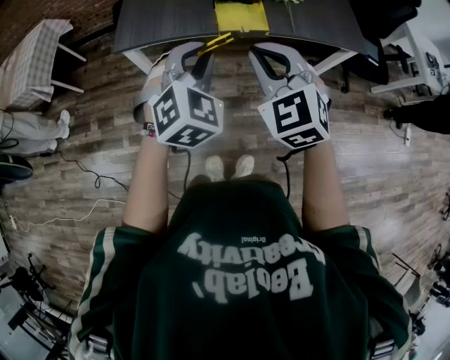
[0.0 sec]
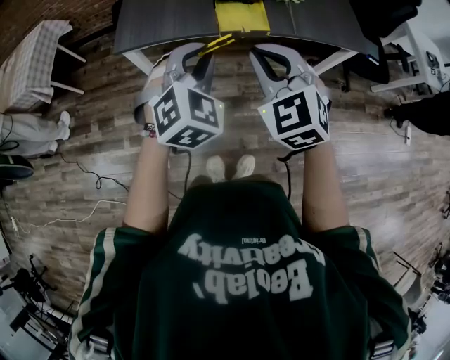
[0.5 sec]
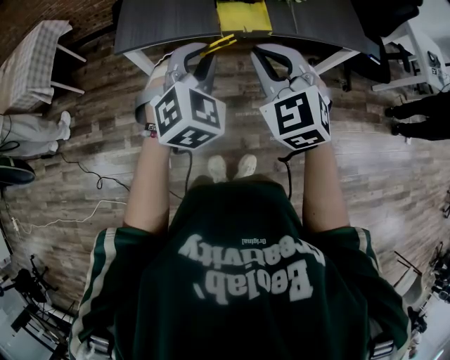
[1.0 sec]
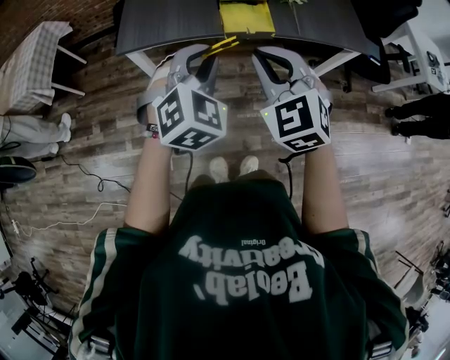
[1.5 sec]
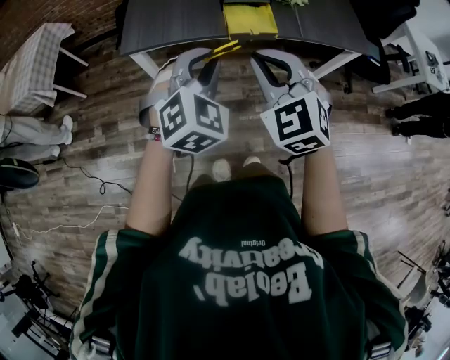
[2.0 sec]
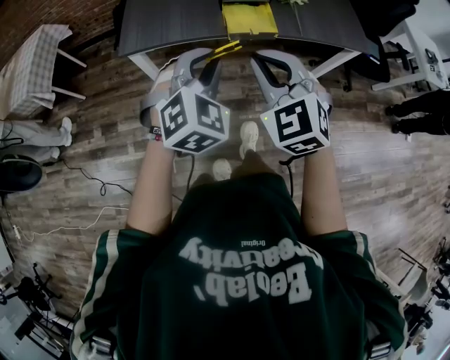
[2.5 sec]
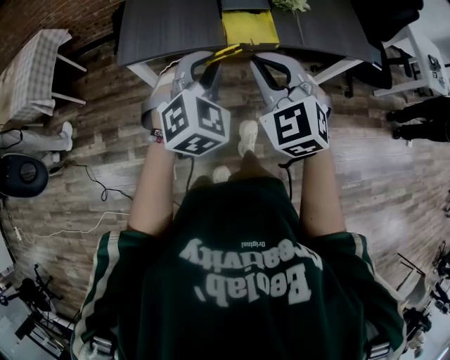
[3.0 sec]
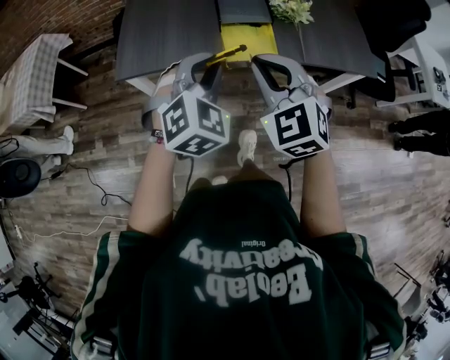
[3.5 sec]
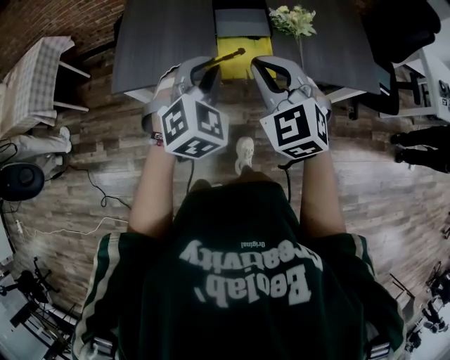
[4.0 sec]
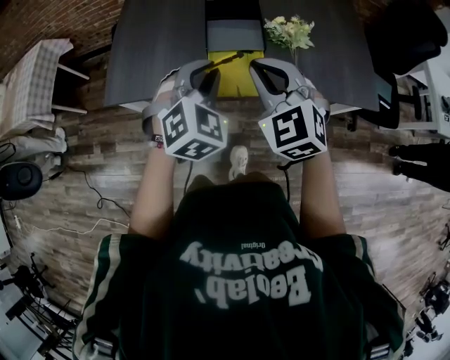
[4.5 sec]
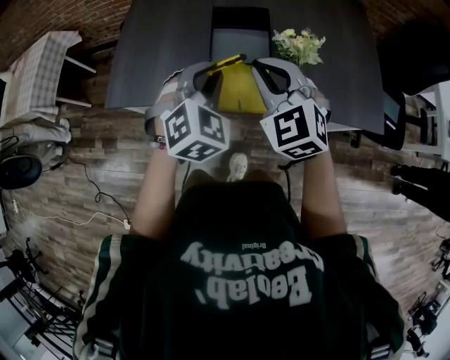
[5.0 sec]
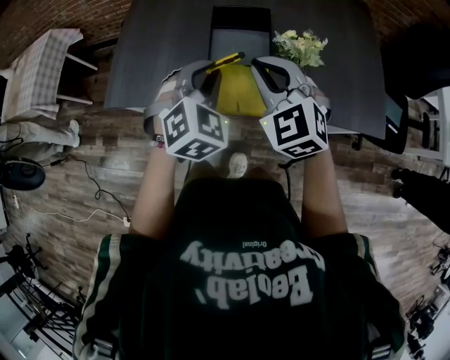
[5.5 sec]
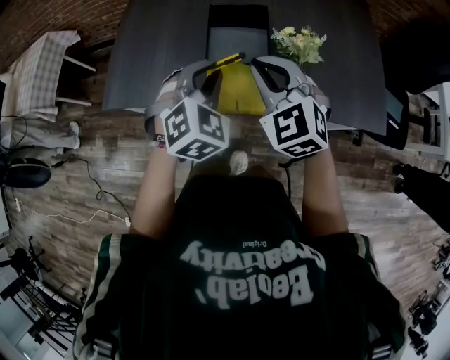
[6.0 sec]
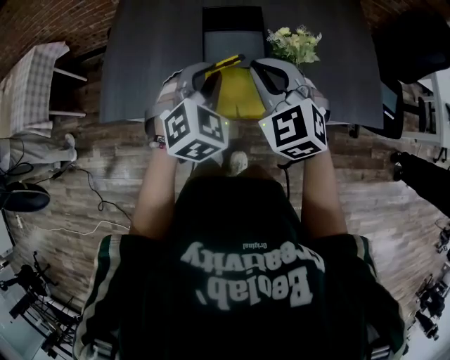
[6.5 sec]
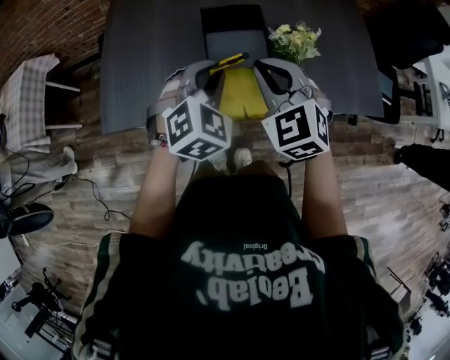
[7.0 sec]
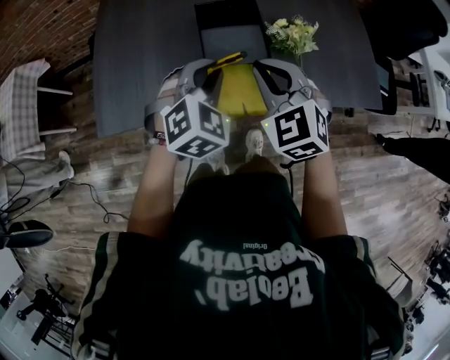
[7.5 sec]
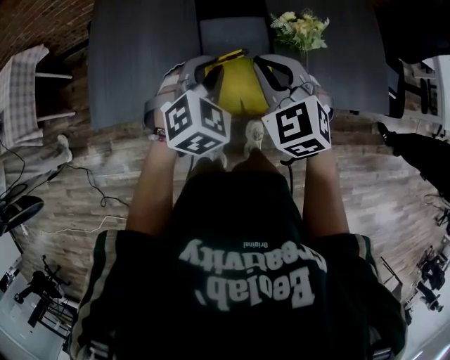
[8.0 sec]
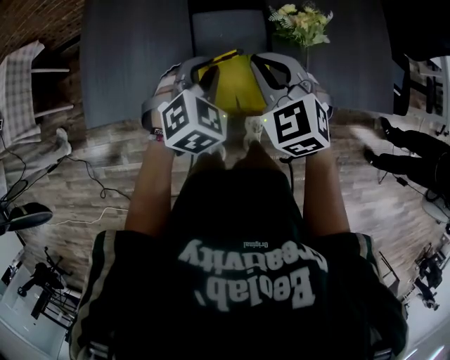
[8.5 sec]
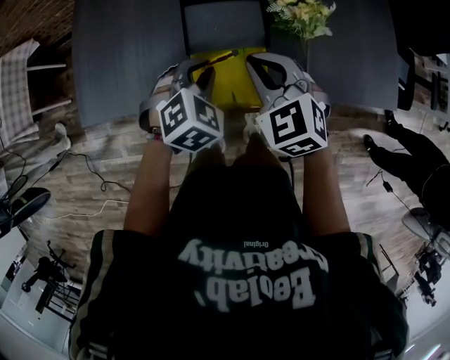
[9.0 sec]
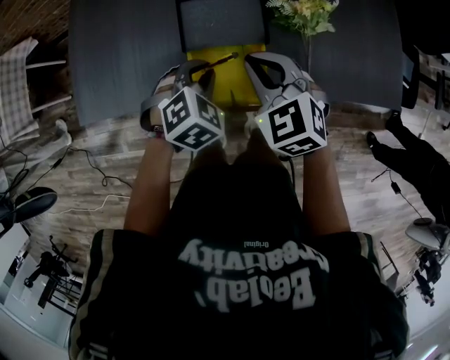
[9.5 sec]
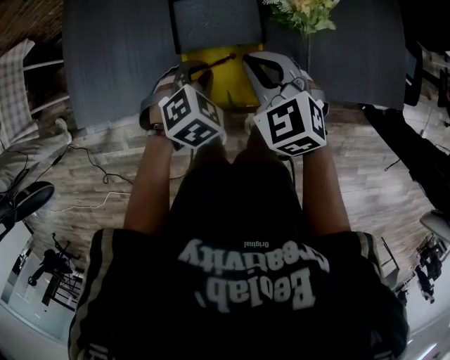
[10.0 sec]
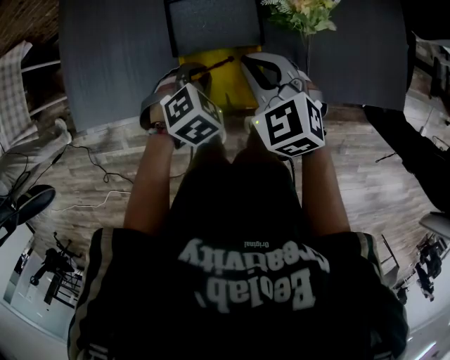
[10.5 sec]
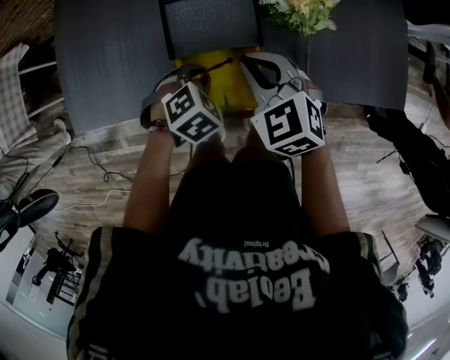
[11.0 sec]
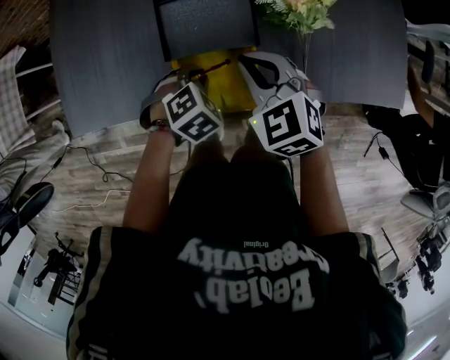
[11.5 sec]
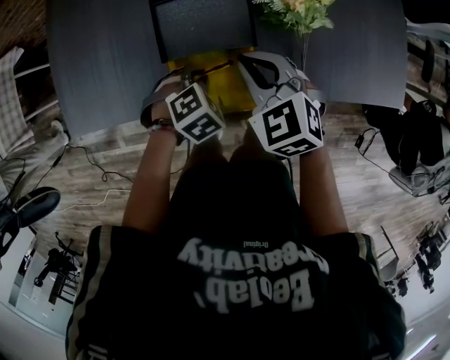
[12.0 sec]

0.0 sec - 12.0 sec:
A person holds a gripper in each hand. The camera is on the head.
0.0 sec - 2.0 sec: The grippers make only small movements.
2.0 sec - 4.0 sec: Both grippers move forward, some 20 cm.
4.0 sec - 6.0 sec: Both grippers travel together forward and to the right, about 15 cm.
6.0 sec - 8.0 sec: Both grippers travel together forward and downward, roughly 10 cm.
8.0 sec - 10.0 sec: Both grippers move downward, approximately 10 cm. The left gripper turns by some 20 degrees.
10.0 sec - 12.0 sec: The left gripper shifts approximately 5 cm downward.

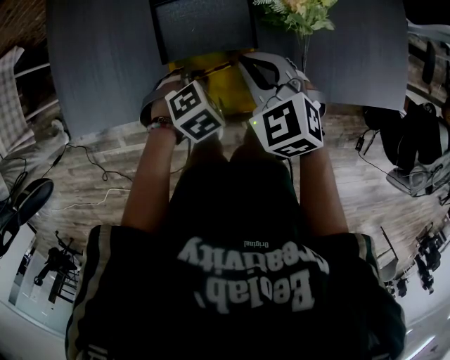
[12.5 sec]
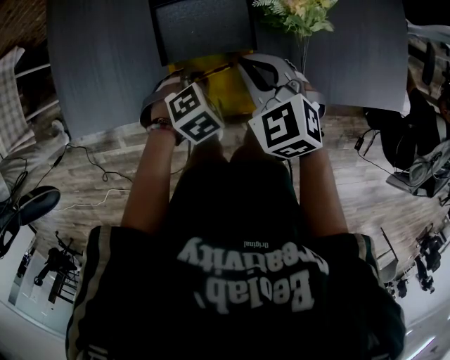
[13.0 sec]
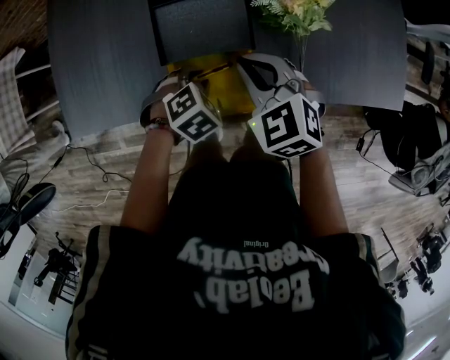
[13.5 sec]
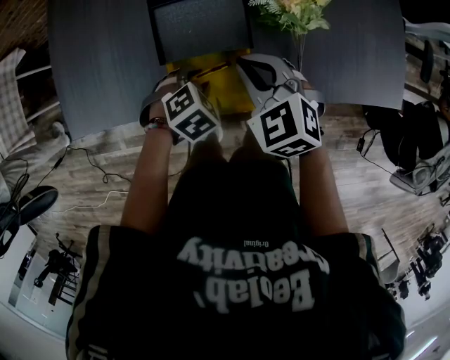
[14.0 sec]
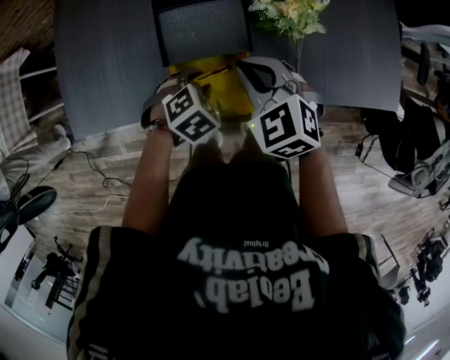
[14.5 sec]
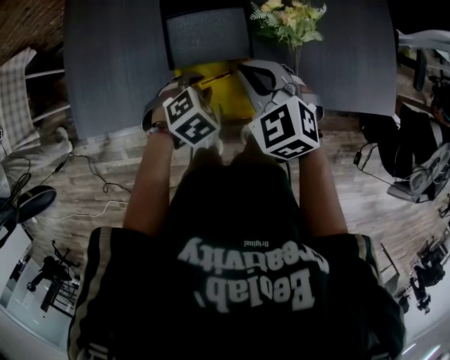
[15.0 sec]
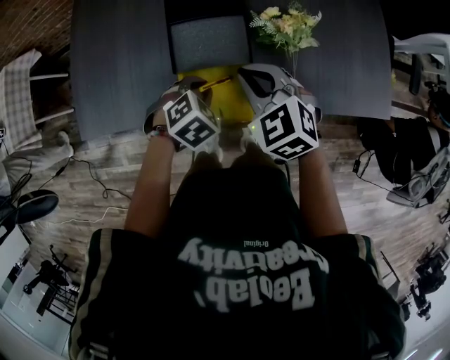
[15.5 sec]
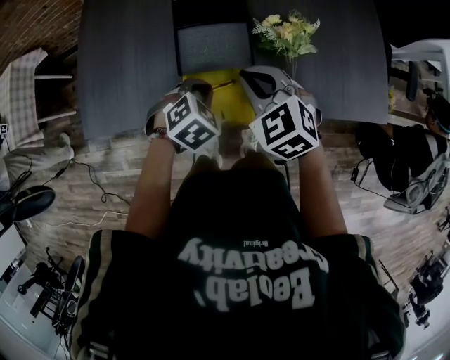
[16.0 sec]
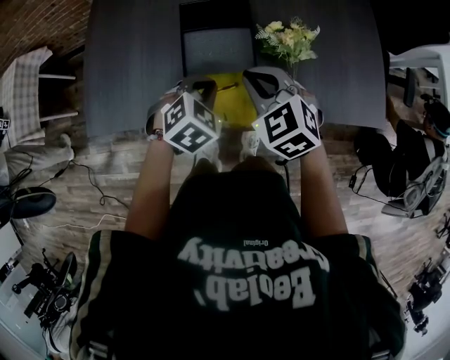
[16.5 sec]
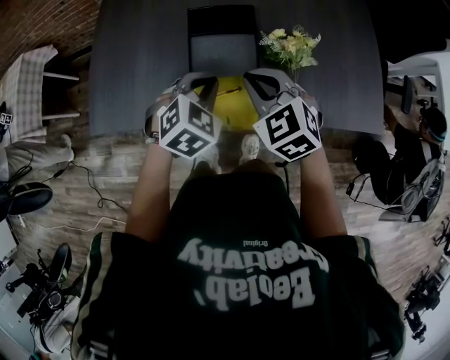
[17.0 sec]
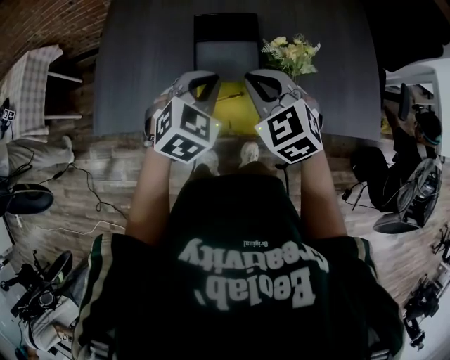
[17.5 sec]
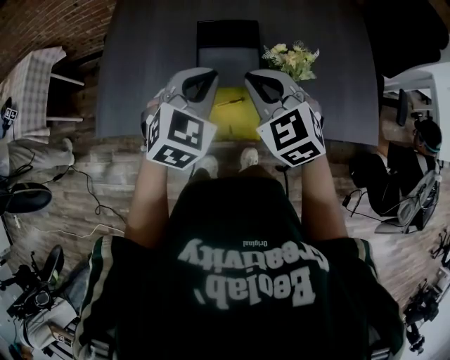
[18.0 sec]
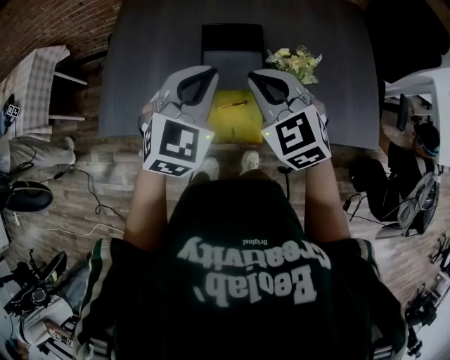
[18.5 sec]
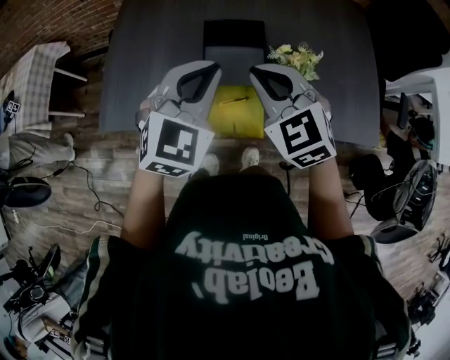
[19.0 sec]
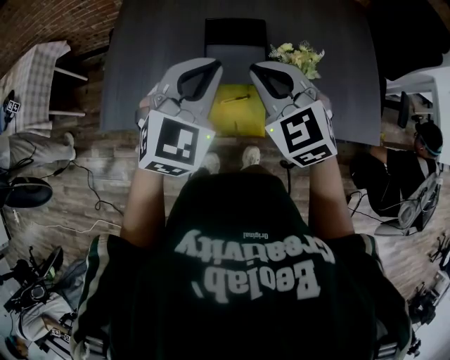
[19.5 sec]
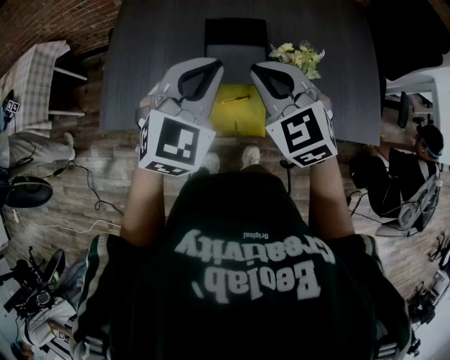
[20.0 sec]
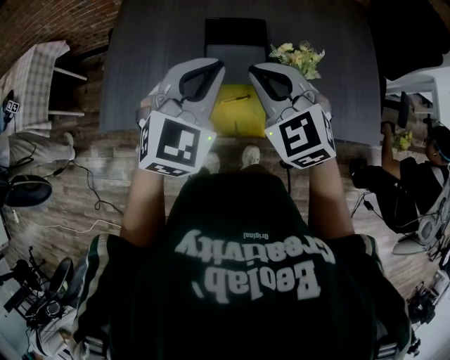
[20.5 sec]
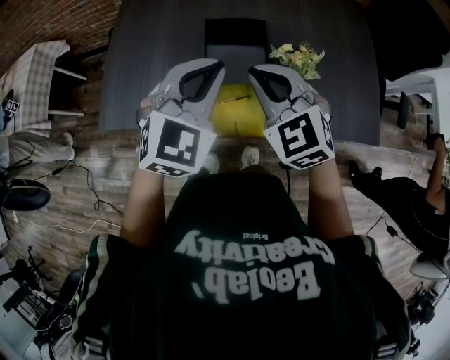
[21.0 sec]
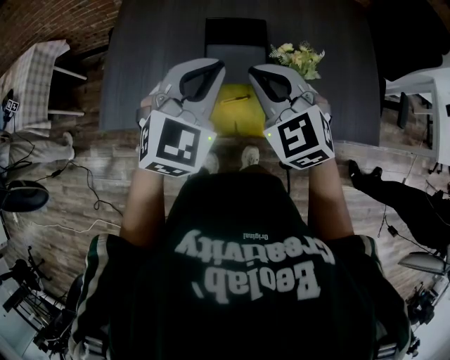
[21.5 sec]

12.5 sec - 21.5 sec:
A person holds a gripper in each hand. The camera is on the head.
12.5 sec - 14.5 sec: The grippers stay close to where they were, moving slightly.
14.5 sec - 17.0 sec: The left gripper shifts roughly 20 cm upward, swivels approximately 30 degrees, and closes its fingers. The right gripper travels upward by some 10 cm.
17.0 sec - 19.5 sec: The left gripper is displaced upward by approximately 15 cm, and changes its angle by about 30 degrees. Meanwhile the right gripper is displaced upward by some 10 cm.
19.5 sec - 21.5 sec: Both grippers stay put.

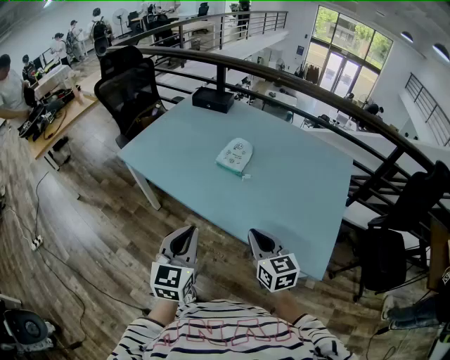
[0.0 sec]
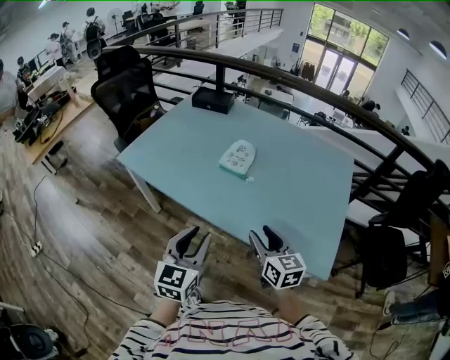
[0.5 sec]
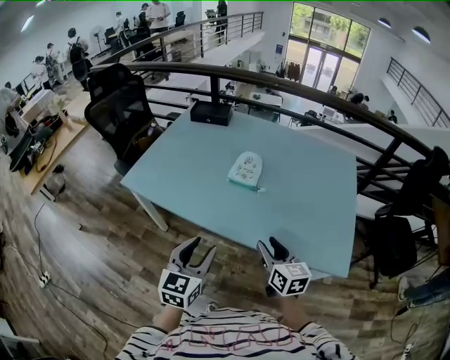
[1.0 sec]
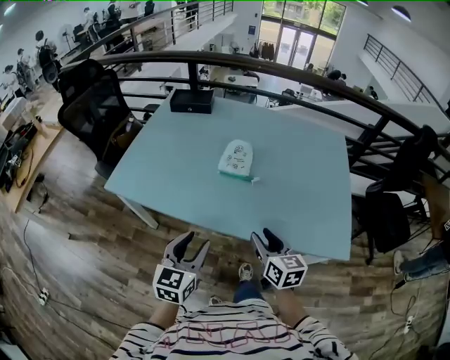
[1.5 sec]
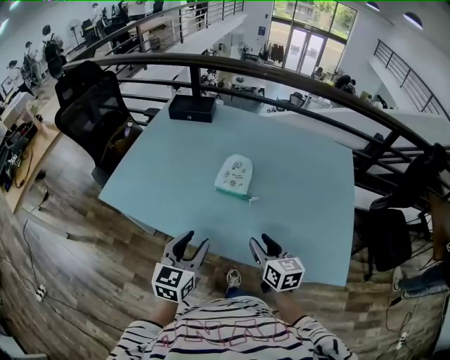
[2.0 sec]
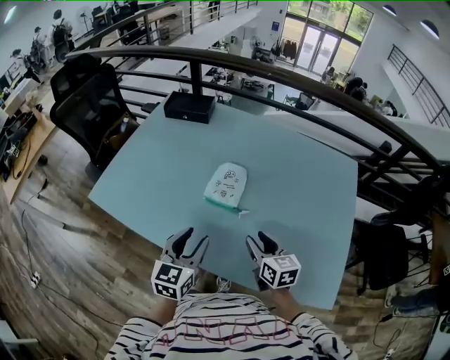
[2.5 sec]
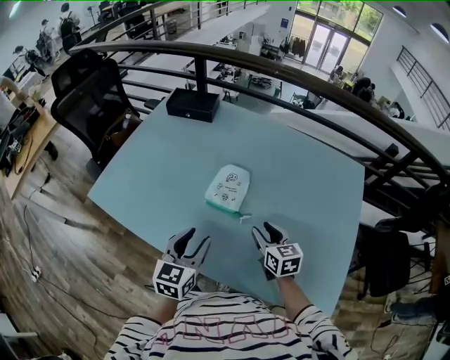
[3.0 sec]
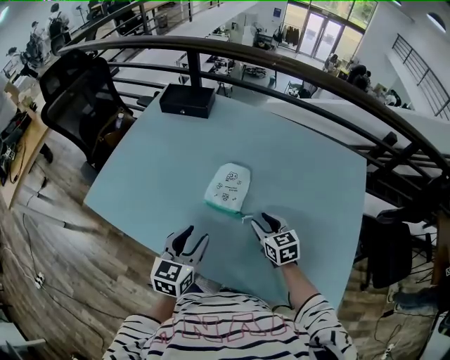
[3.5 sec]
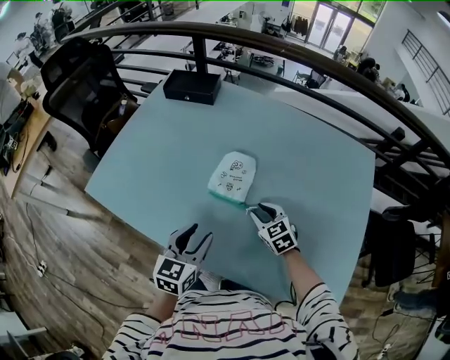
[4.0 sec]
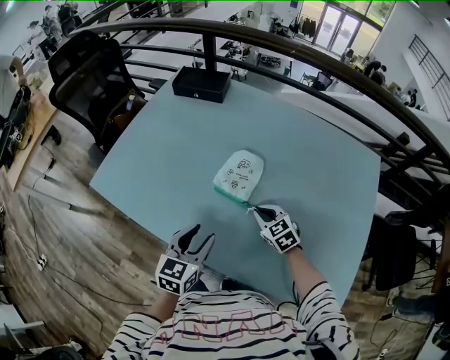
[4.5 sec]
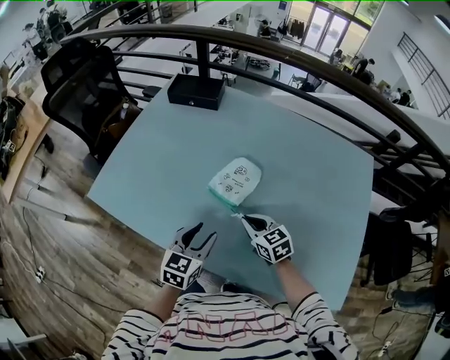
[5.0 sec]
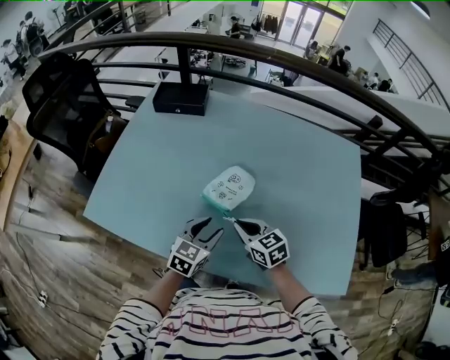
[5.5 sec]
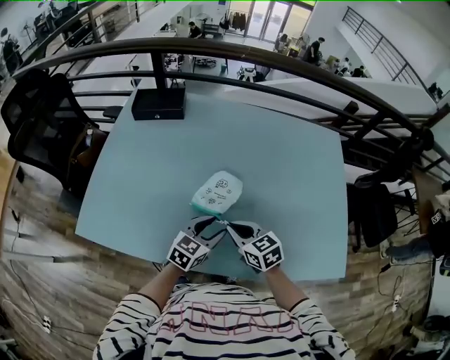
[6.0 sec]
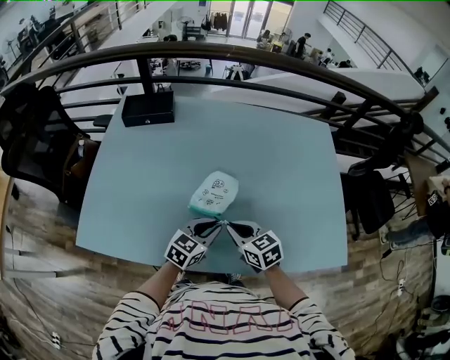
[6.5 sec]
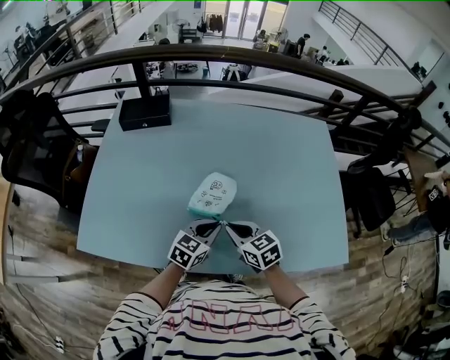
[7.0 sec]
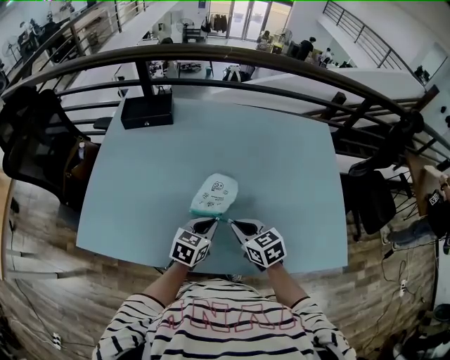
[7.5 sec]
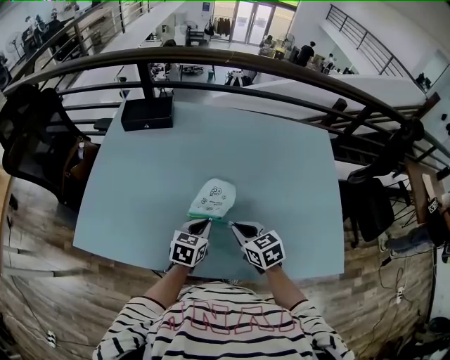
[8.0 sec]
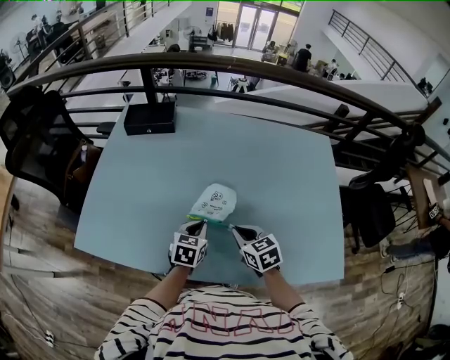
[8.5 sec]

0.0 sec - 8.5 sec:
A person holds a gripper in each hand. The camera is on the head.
0.0 sec - 2.0 sec: The left gripper is displaced forward and to the left by roughly 20 cm, changes its angle by some 20 degrees, and opens its fingers; the right gripper goes roughly 15 cm forward and downward, changes its angle by approximately 20 degrees, and opens up.
2.0 sec - 4.0 sec: The left gripper travels forward, downward and to the right by about 15 cm. The right gripper moves forward and downward, about 25 cm, and turns by approximately 40 degrees.
4.0 sec - 6.5 sec: The left gripper moves approximately 5 cm, turns by approximately 40 degrees, and closes. Meanwhile the right gripper changes place by roughly 15 cm, rotates roughly 30 degrees, and closes up.
6.5 sec - 8.5 sec: The left gripper ends up about 5 cm from where it was, and changes its angle by some 30 degrees.
